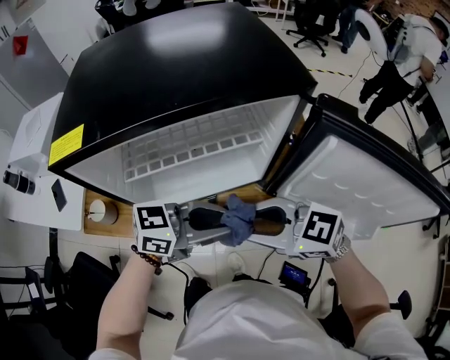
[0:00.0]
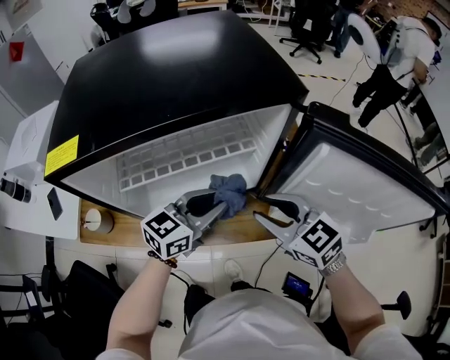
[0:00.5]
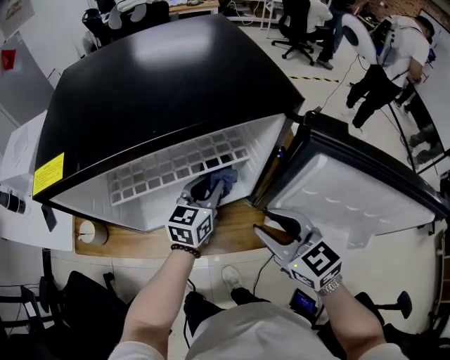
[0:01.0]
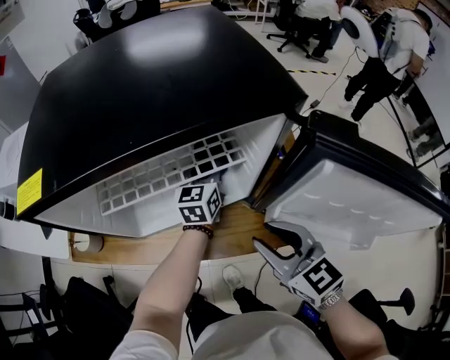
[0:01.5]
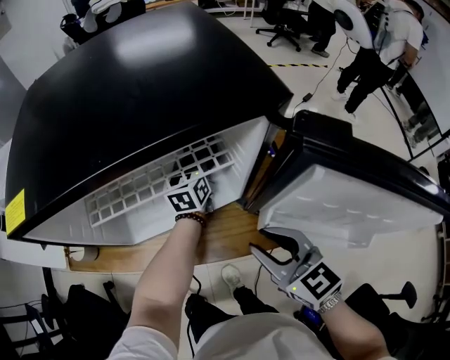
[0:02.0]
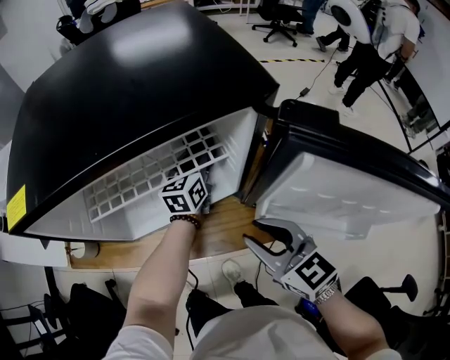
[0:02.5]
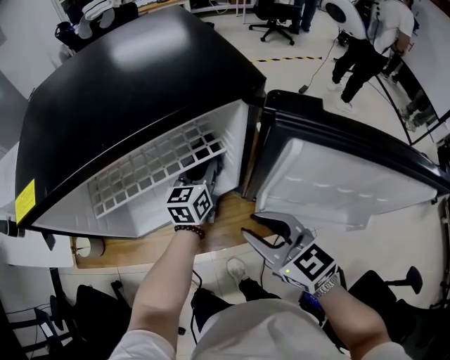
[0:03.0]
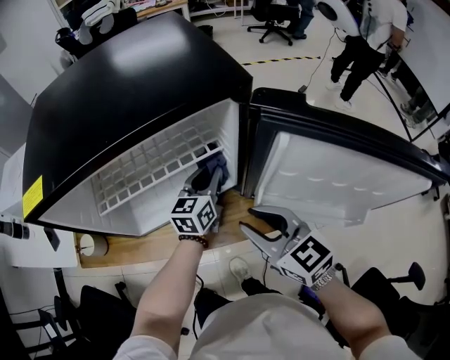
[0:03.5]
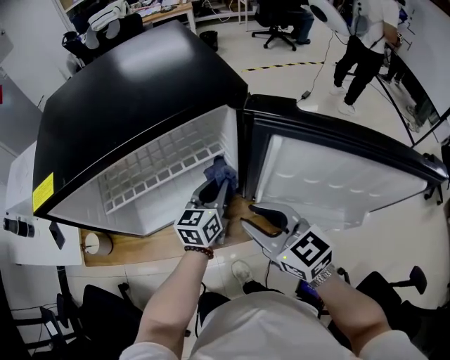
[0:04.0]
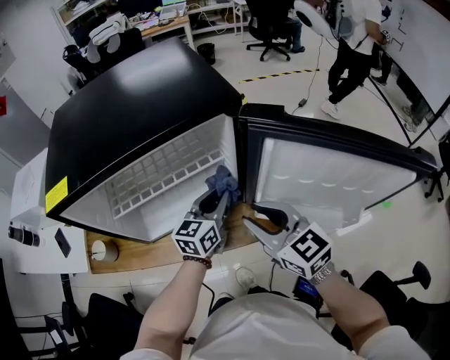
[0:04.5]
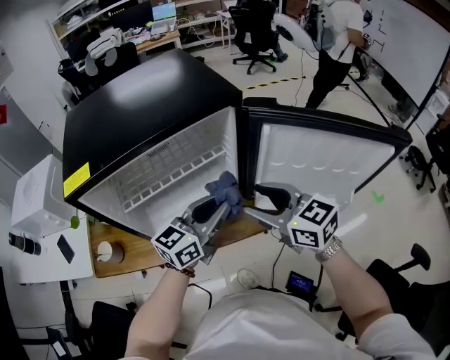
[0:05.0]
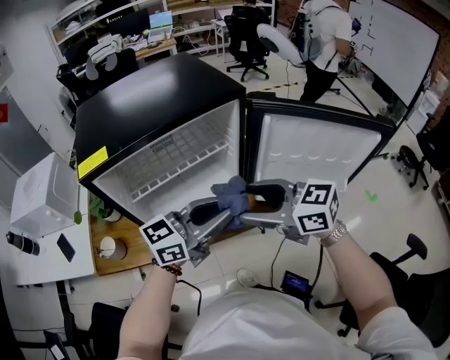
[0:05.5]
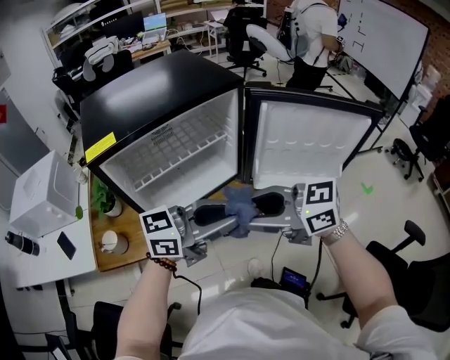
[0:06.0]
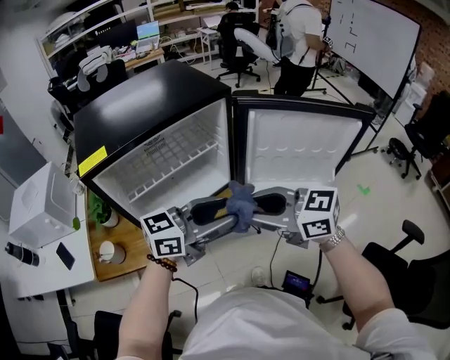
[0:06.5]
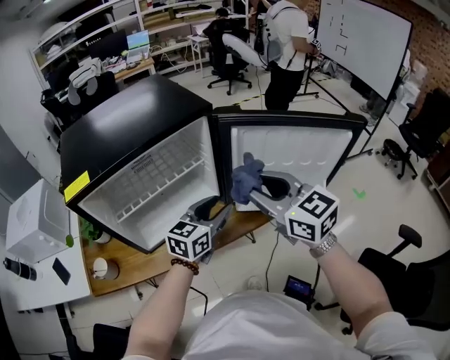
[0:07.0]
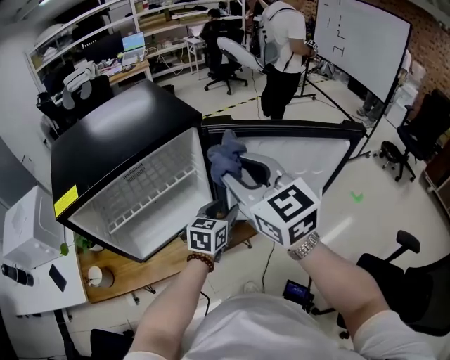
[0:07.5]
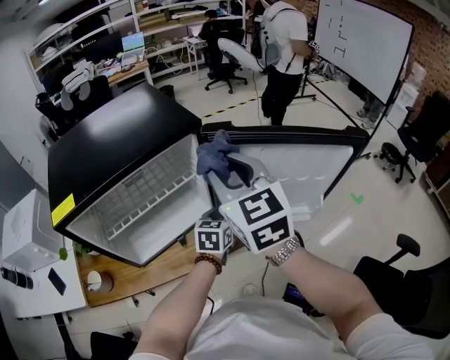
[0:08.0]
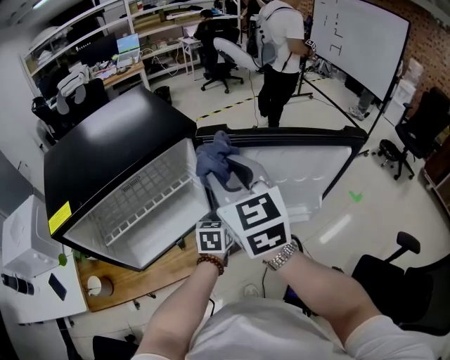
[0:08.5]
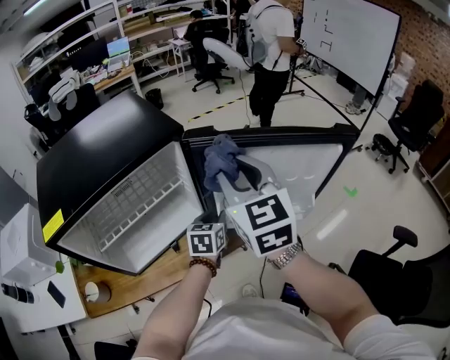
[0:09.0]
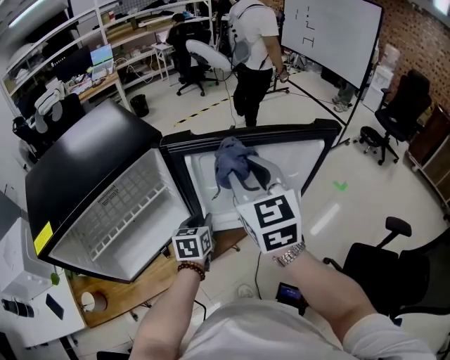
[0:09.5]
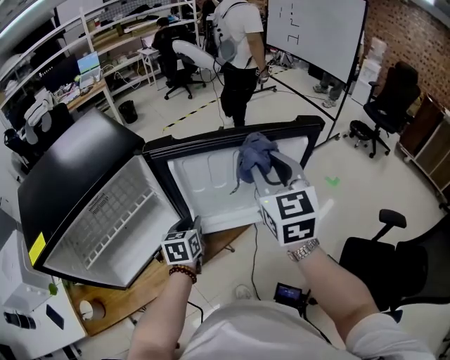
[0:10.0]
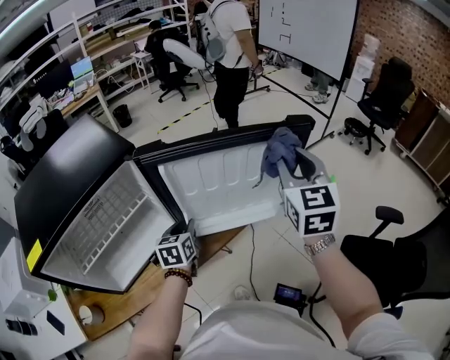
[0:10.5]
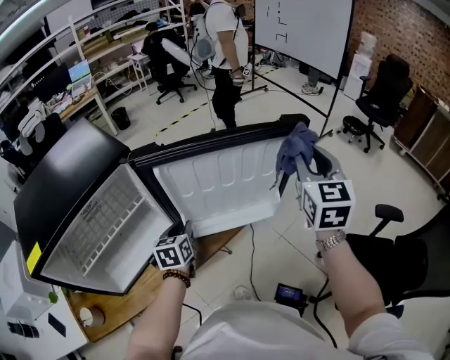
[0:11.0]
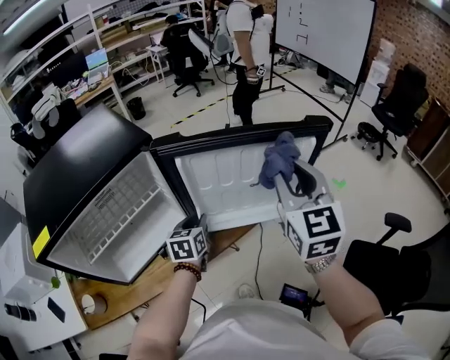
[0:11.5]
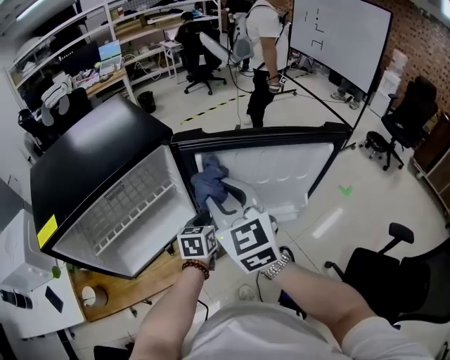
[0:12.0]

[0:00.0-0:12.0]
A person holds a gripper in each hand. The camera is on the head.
0:00.0 to 0:02.0: The right gripper changes place by approximately 10 cm, and swivels about 40 degrees. Meanwhile the left gripper changes place by approximately 35 cm, and turns by some 60 degrees.
0:02.0 to 0:04.0: The left gripper shifts some 15 cm backward.
0:04.0 to 0:06.0: The right gripper changes place by approximately 20 cm, changes its angle by some 30 degrees, and opens, then closes again. Meanwhile the left gripper shifts by roughly 35 cm, and rotates about 60 degrees.
0:06.0 to 0:08.0: The left gripper moves roughly 30 cm, and angles its fingers downward, by about 30 degrees. The right gripper shifts by roughly 25 cm, and changes its angle by about 60 degrees.
0:08.0 to 0:10.0: The right gripper shifts about 20 cm to the right, and turns by approximately 30 degrees.
0:10.0 to 0:12.0: The right gripper travels to the left by roughly 15 cm, and changes its angle by approximately 20 degrees.

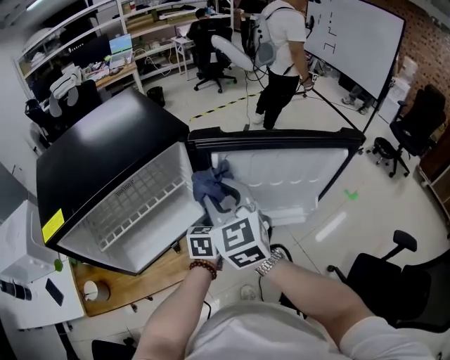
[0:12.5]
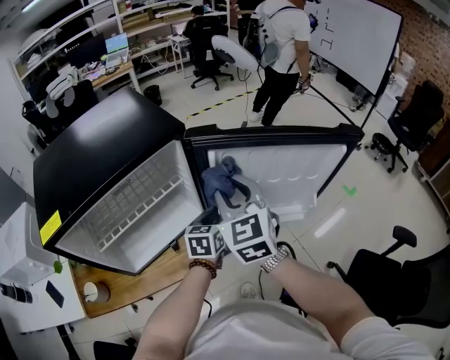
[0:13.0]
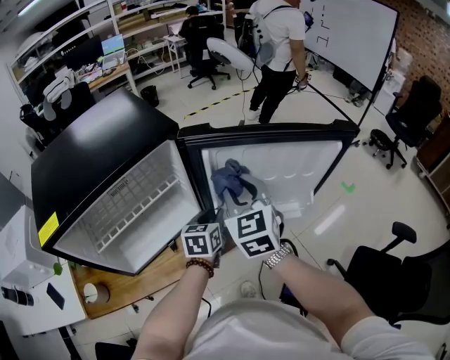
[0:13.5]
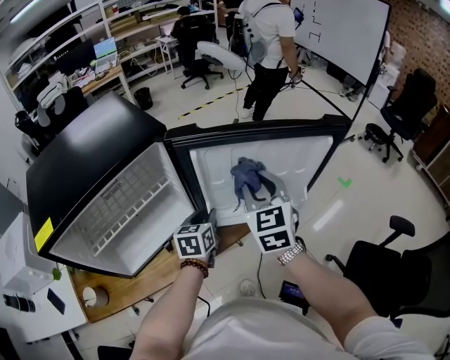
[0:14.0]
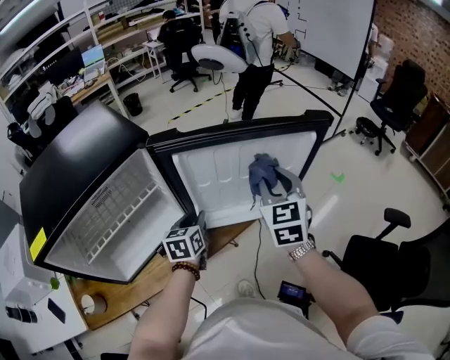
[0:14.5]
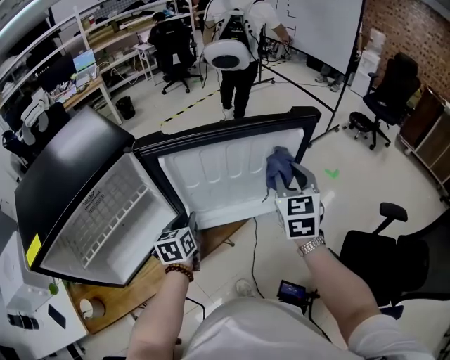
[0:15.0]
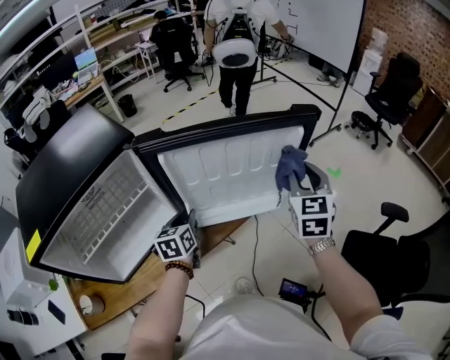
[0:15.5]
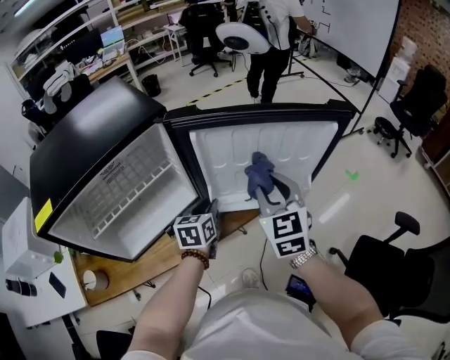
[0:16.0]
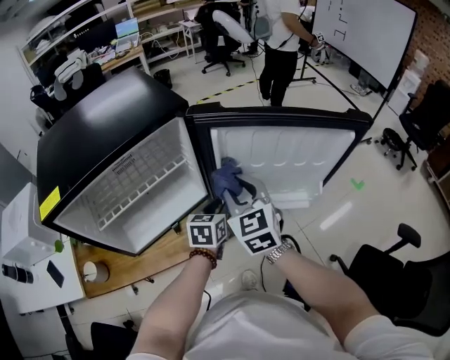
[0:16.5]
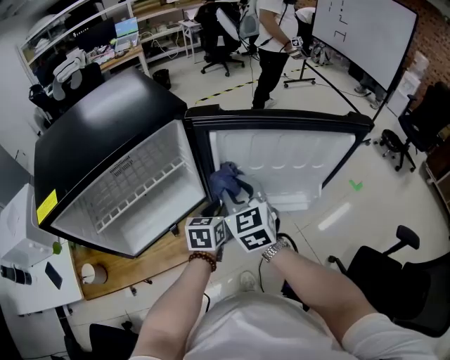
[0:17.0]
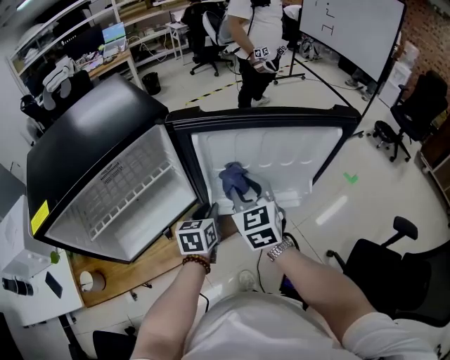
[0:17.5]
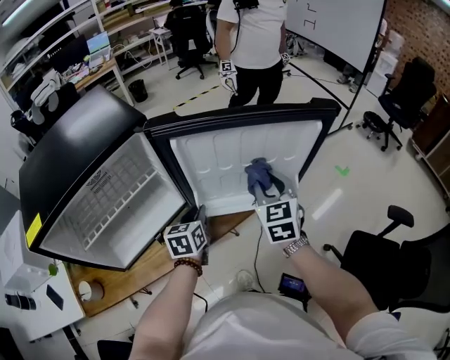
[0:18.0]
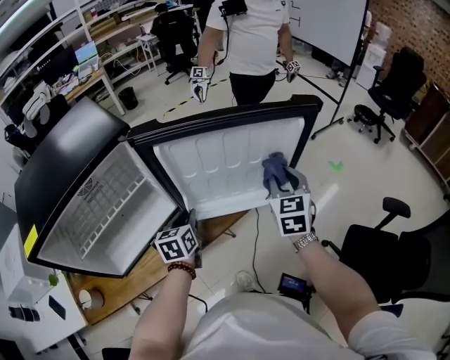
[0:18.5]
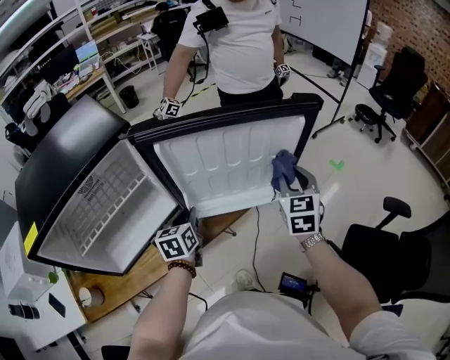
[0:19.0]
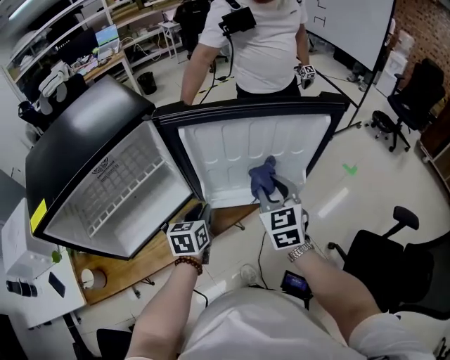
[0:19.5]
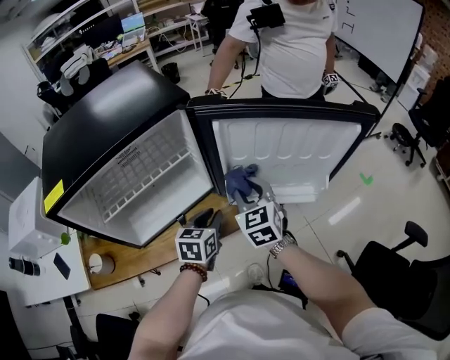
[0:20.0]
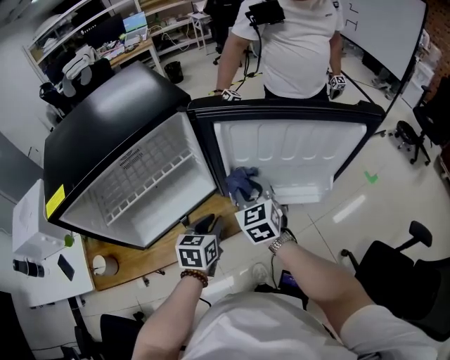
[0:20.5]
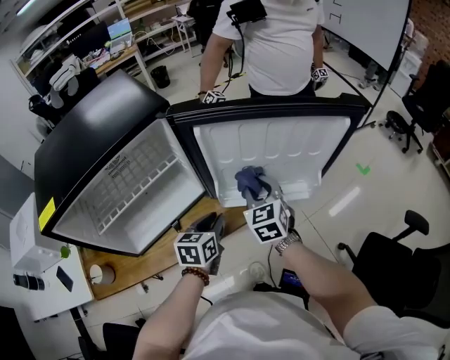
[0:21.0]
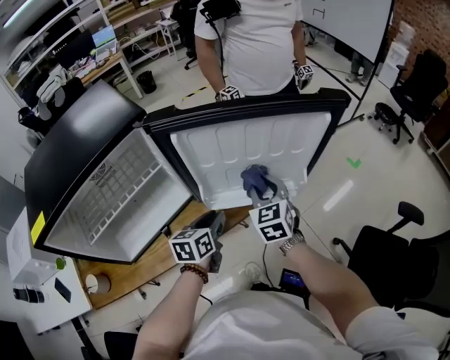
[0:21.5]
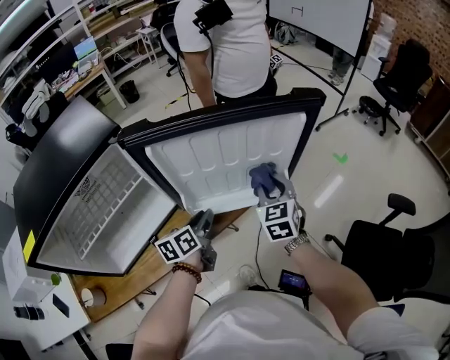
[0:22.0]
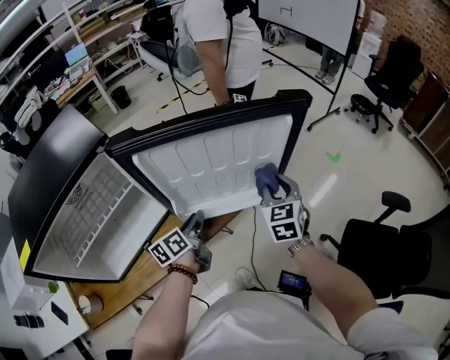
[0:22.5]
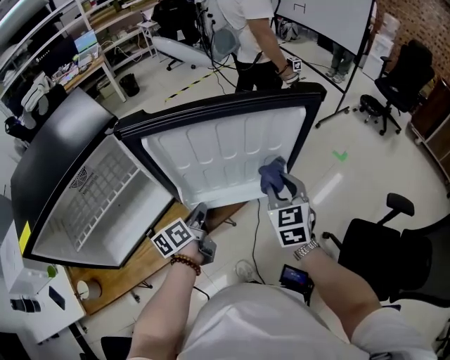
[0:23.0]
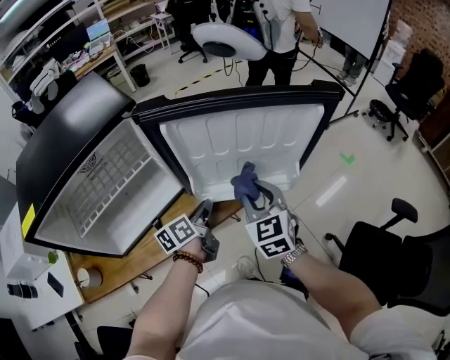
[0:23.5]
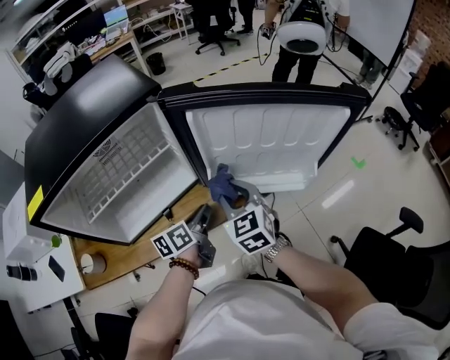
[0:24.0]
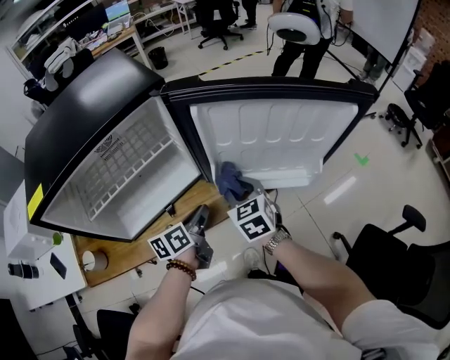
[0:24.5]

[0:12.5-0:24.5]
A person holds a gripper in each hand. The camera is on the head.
0:12.5 to 0:14.5: The right gripper moves to the right, roughly 20 cm, and rotates about 30 degrees.
0:14.5 to 0:16.5: The right gripper goes roughly 20 cm to the left, and changes its angle by about 20 degrees.
0:16.5 to 0:18.5: The right gripper shifts some 25 cm to the right, and swivels about 30 degrees.
0:18.5 to 0:20.5: The right gripper is displaced to the left by roughly 25 cm, and turns by approximately 30 degrees, while the left gripper shifts roughly 5 cm backward.
0:20.5 to 0:22.5: The right gripper moves to the right, approximately 25 cm, and changes its angle by approximately 30 degrees, while the left gripper moves to the right and forward, approximately 10 cm, and changes its angle by about 40 degrees.
0:22.5 to 0:24.5: The left gripper shifts roughly 10 cm to the left and backward. Meanwhile the right gripper heads to the left, covering approximately 25 cm, and turns by some 30 degrees.

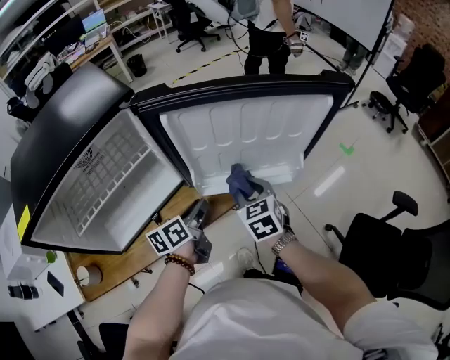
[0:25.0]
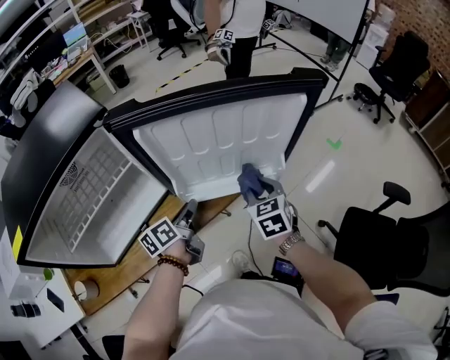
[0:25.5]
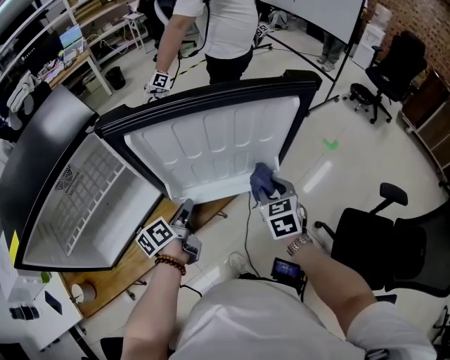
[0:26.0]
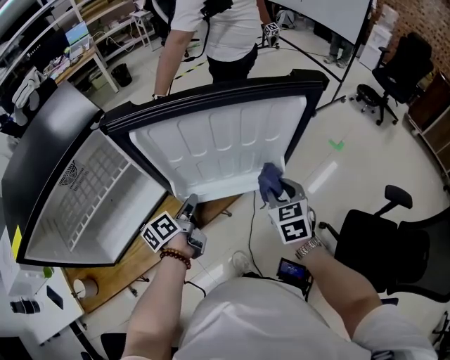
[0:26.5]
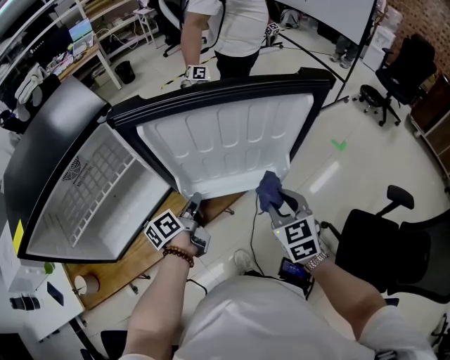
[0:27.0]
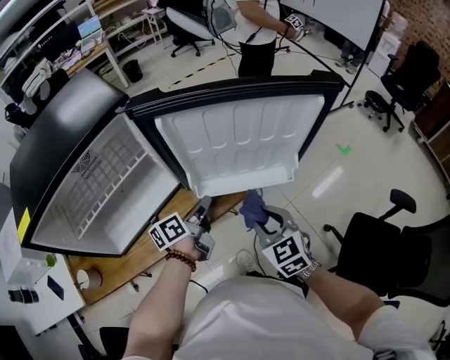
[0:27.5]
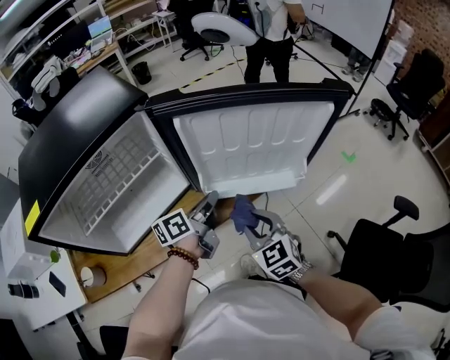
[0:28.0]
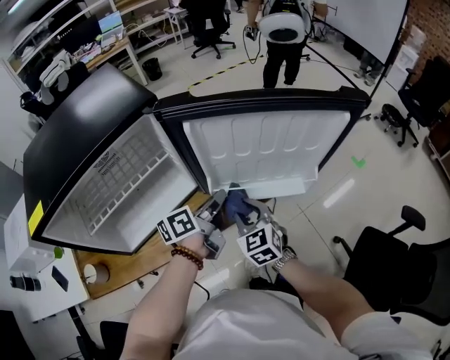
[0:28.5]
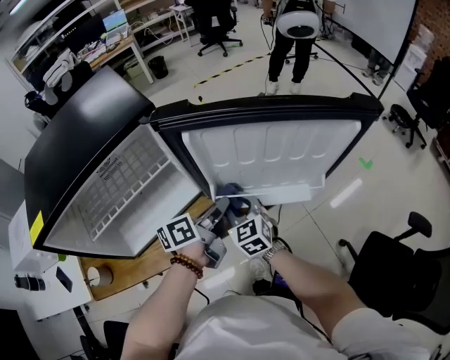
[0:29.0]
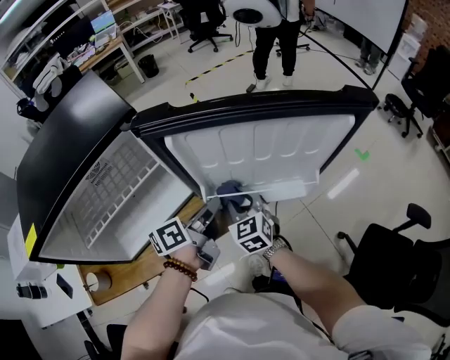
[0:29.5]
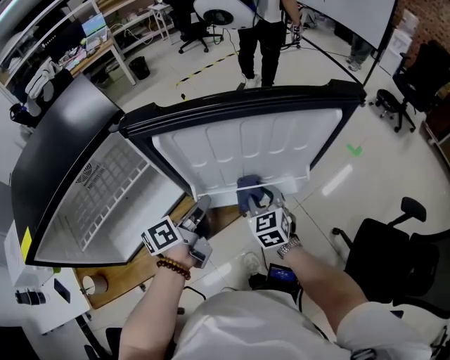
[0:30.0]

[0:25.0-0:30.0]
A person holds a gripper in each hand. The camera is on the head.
0:25.0 to 0:27.5: The right gripper travels backward by roughly 10 cm, and moves roughly 15 cm to the right and comes back.
0:27.5 to 0:30.0: The left gripper goes about 5 cm upward. Meanwhile the right gripper travels forward and downward by roughly 15 cm, and travels to the left and back again, about 15 cm each way.
